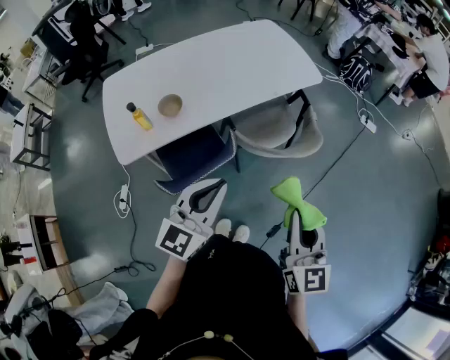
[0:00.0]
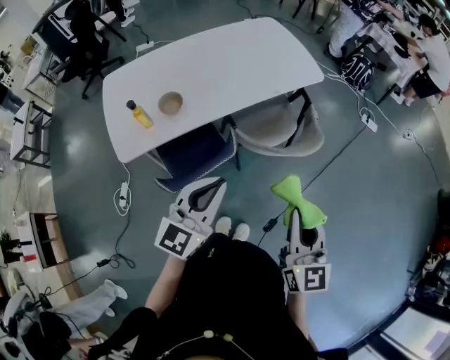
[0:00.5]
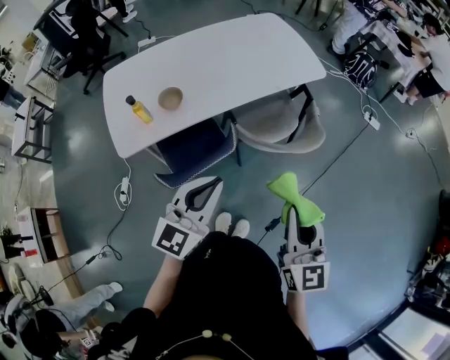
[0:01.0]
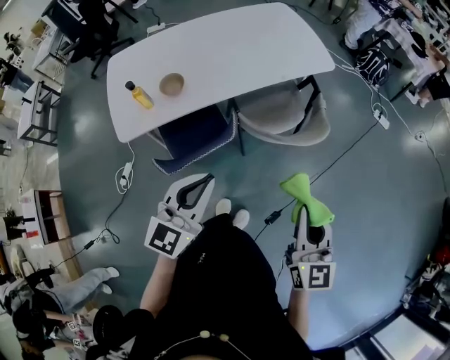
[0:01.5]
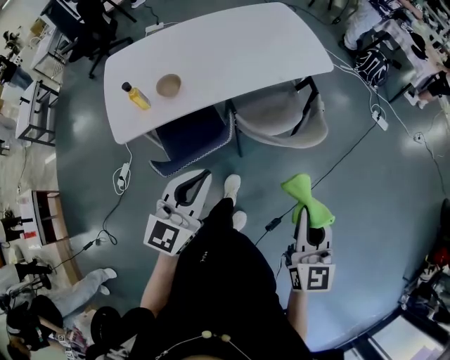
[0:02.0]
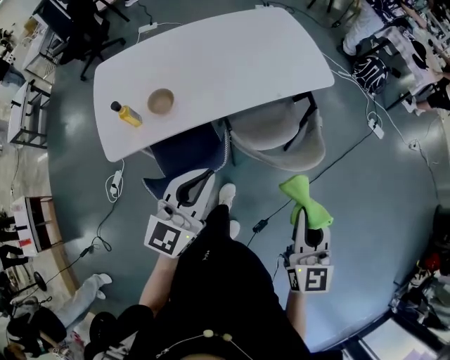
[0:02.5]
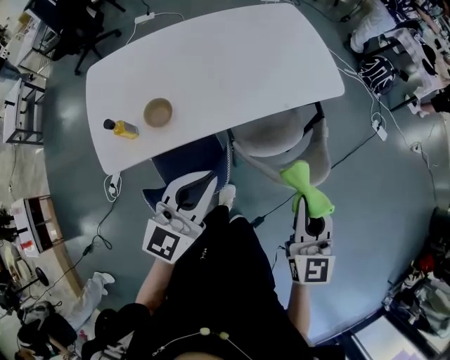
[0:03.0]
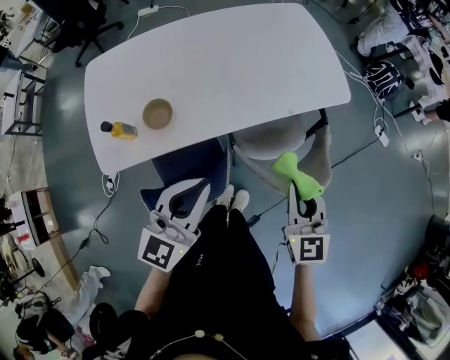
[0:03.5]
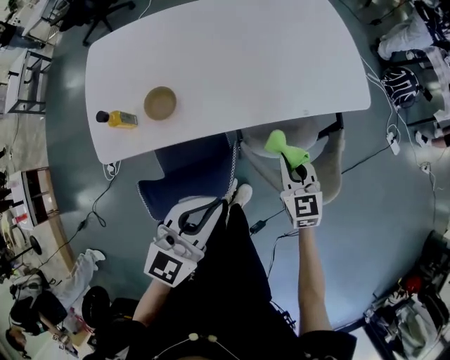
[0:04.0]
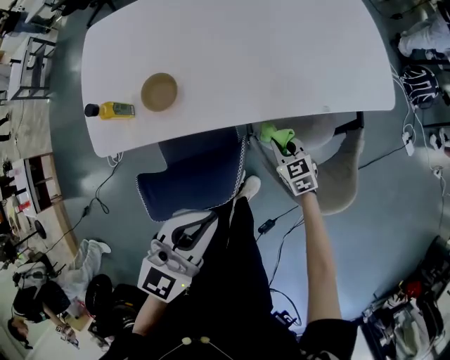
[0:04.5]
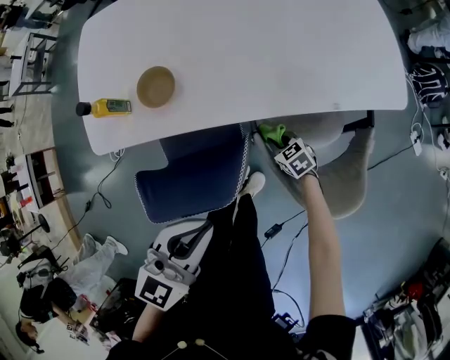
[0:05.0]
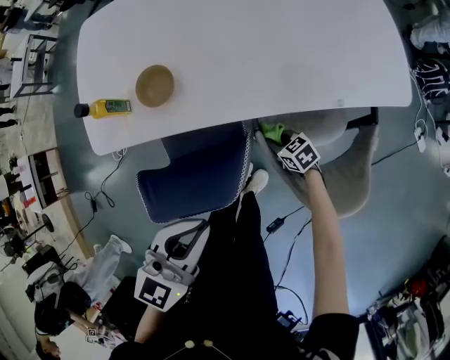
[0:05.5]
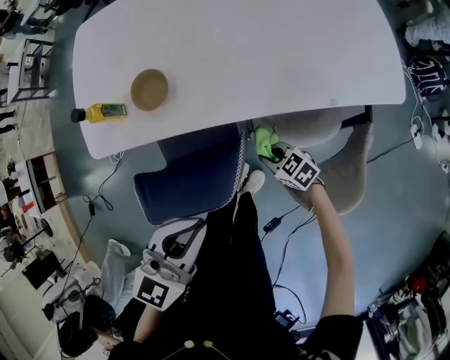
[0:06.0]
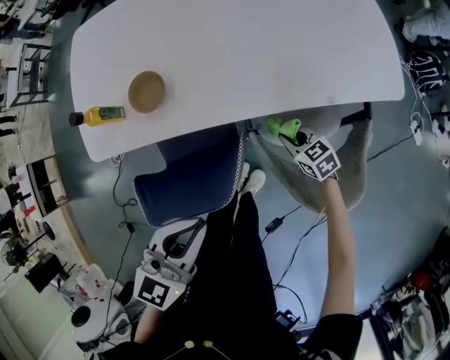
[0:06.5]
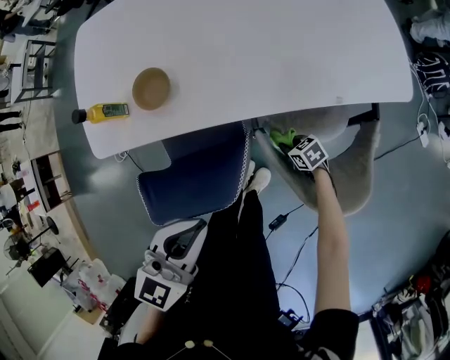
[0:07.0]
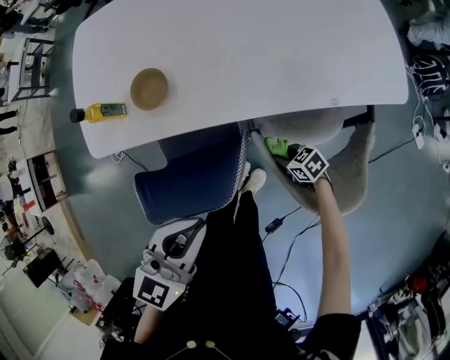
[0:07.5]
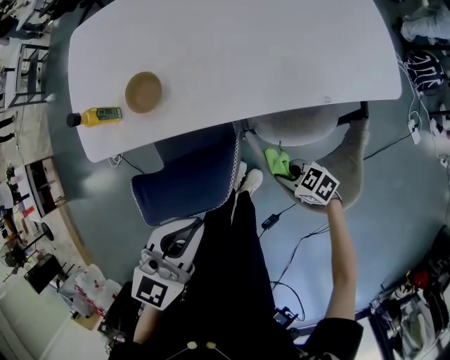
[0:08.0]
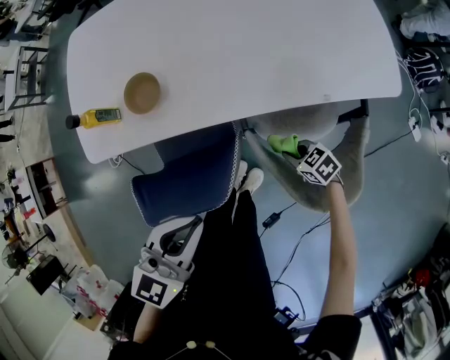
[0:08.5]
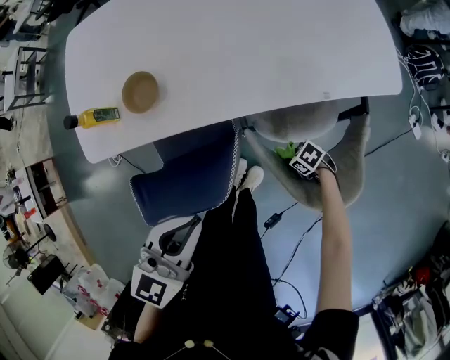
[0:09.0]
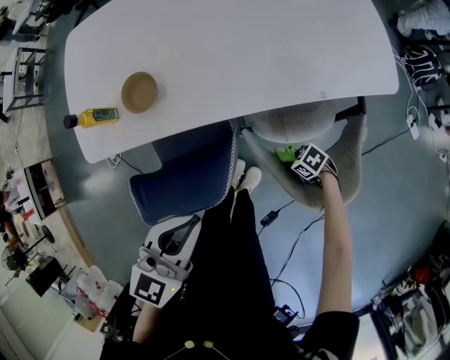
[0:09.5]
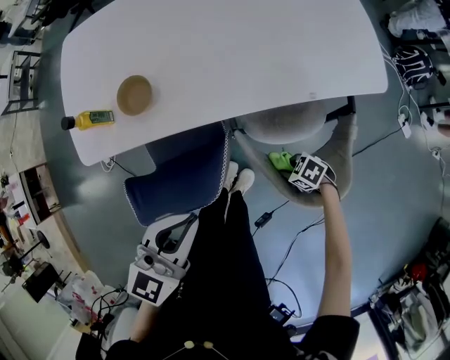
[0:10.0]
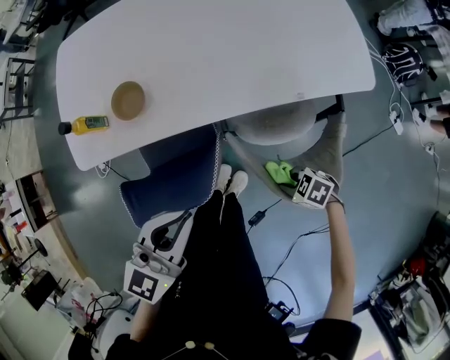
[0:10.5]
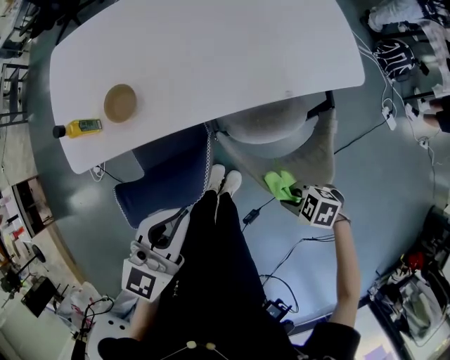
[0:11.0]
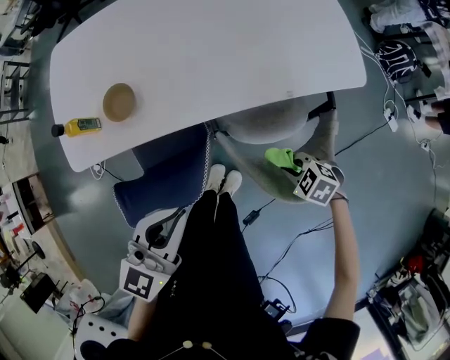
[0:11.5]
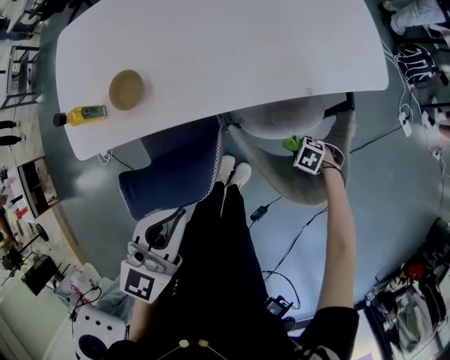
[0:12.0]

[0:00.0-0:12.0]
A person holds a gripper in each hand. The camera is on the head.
0:00.0 to 0:02.0: The right gripper heads to the right, covering approximately 5 cm.
0:02.0 to 0:04.0: The left gripper moves forward, roughly 15 cm, while the right gripper shifts about 40 cm forward and downward, and rotates some 30 degrees.
0:04.0 to 0:06.0: The right gripper travels downward by some 20 cm, and turns by approximately 50 degrees. Meanwhile the left gripper travels downward by approximately 5 cm.
0:06.0 to 0:08.0: The right gripper goes downward and returns, about 10 cm each way.
0:10.0 to 0:12.0: The right gripper travels upward and back again, approximately 15 cm each way, and rotates about 20 degrees.

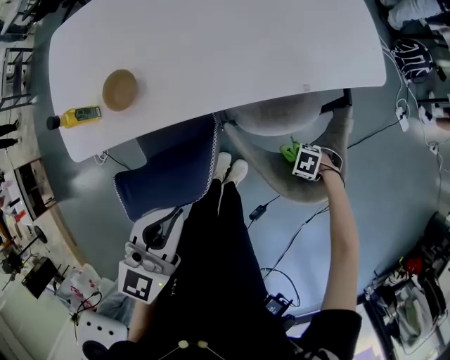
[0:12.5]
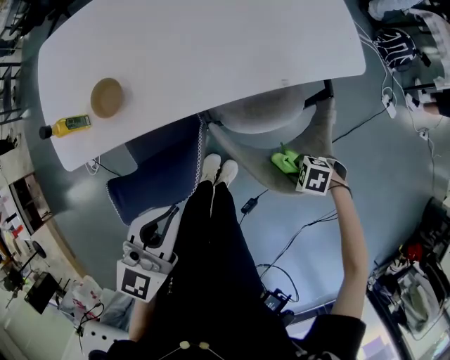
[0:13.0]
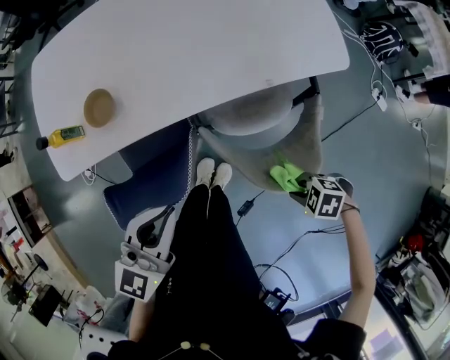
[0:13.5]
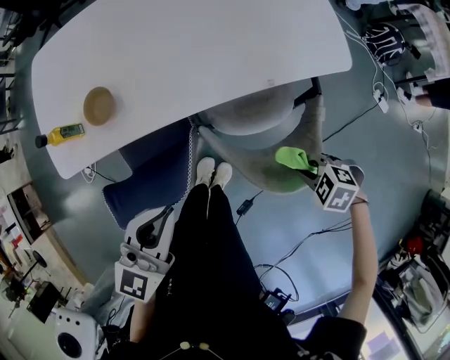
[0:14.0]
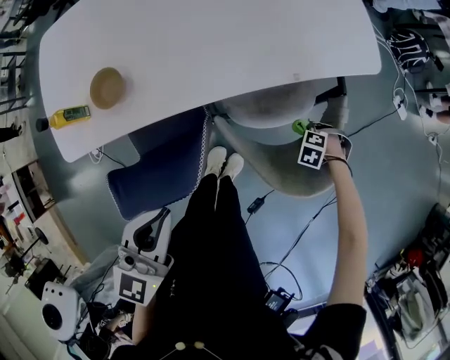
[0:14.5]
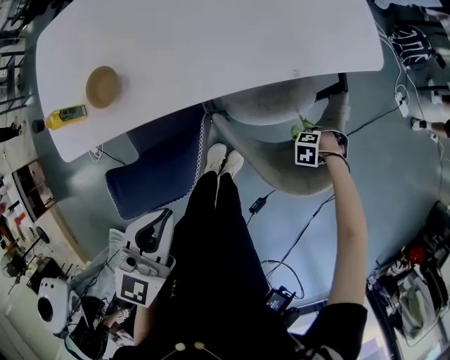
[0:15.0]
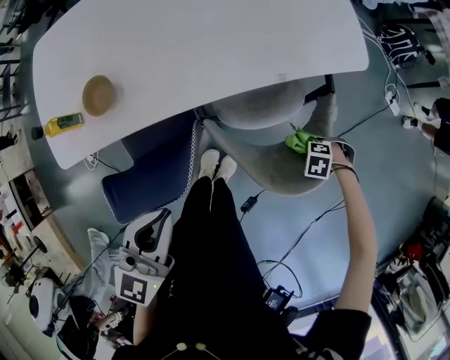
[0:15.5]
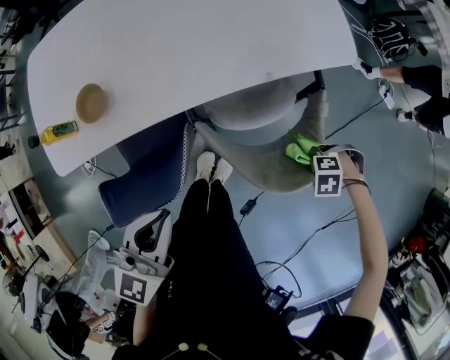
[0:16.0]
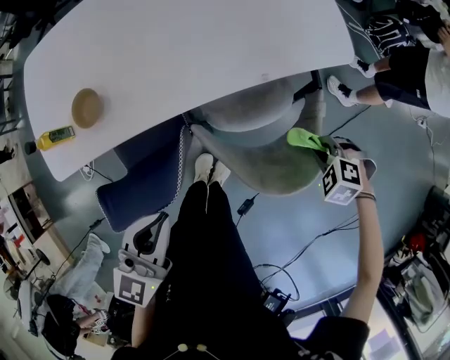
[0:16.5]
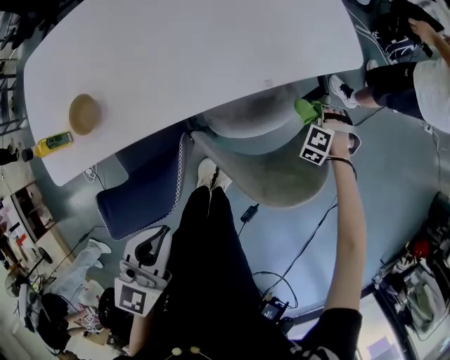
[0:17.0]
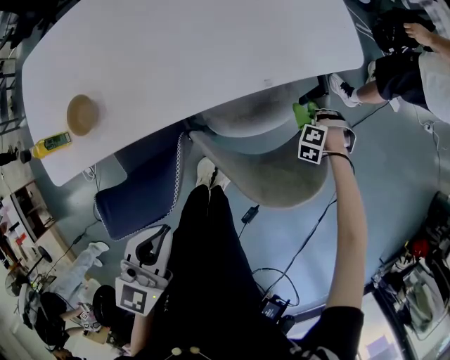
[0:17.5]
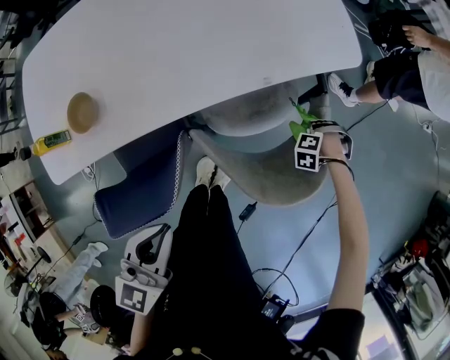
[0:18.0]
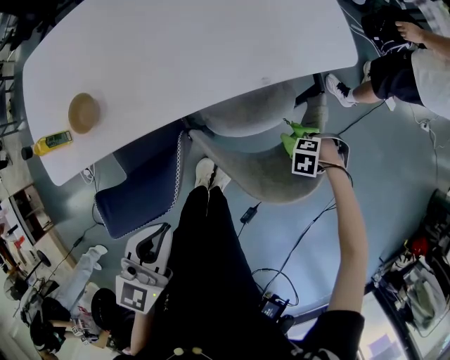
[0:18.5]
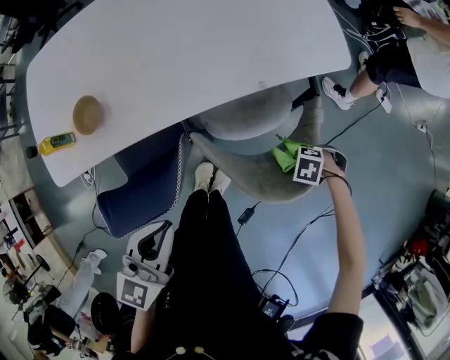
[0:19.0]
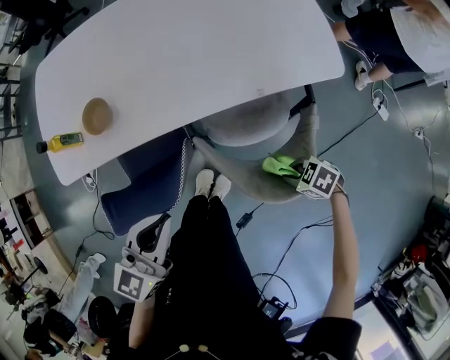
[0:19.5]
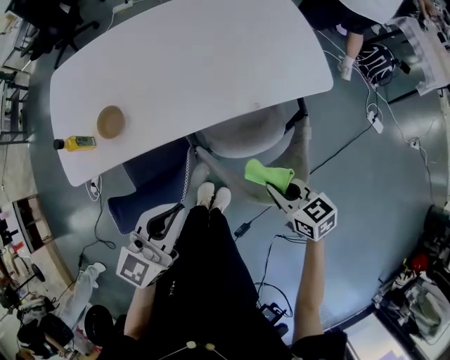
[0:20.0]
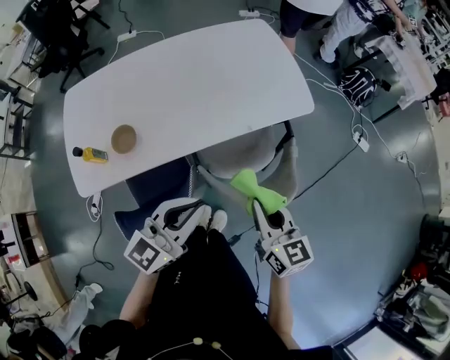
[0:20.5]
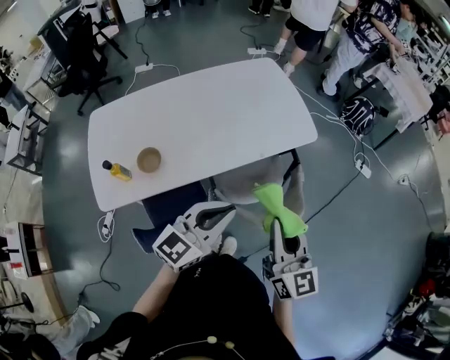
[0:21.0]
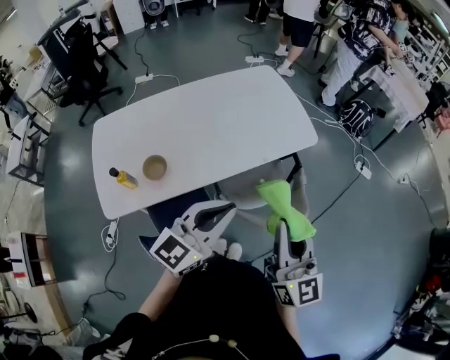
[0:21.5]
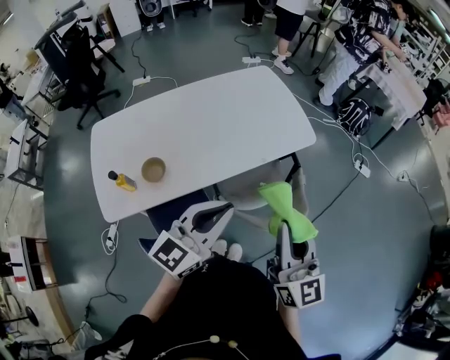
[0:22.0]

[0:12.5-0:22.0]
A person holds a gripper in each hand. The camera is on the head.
0:12.5 to 0:14.5: The right gripper reaches approximately 20 cm upward, then returns, and swivels about 30 degrees.
0:14.5 to 0:16.5: The right gripper is displaced upward by roughly 20 cm.
0:16.5 to 0:18.0: The right gripper goes approximately 15 cm downward, and rotates roughly 30 degrees.
0:18.0 to 0:20.0: The right gripper heads upward, covering about 25 cm, and points its fingers some 40 degrees further upward; the left gripper is displaced upward by about 5 cm.
0:20.0 to 0:22.0: The left gripper shifts roughly 15 cm upward, while the right gripper travels upward by approximately 30 cm, and tilts its fingers approximately 50 degrees upward.

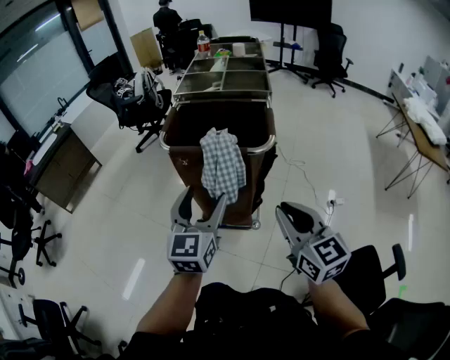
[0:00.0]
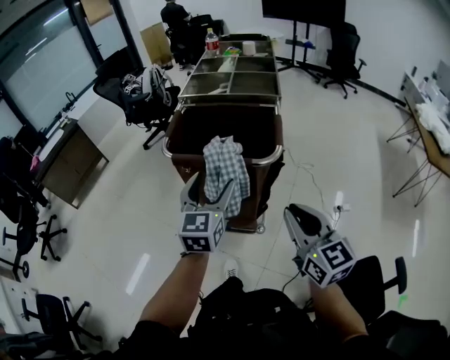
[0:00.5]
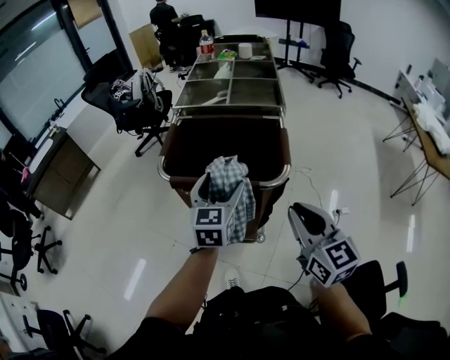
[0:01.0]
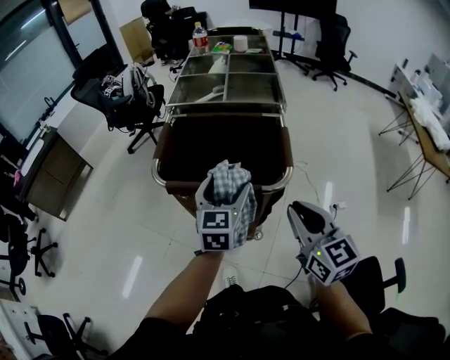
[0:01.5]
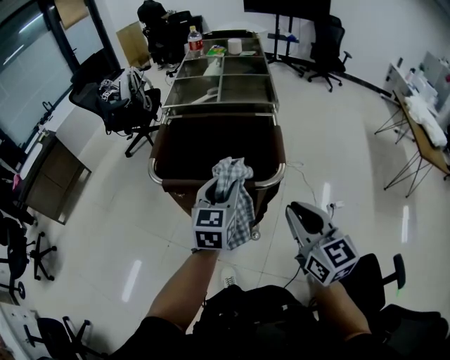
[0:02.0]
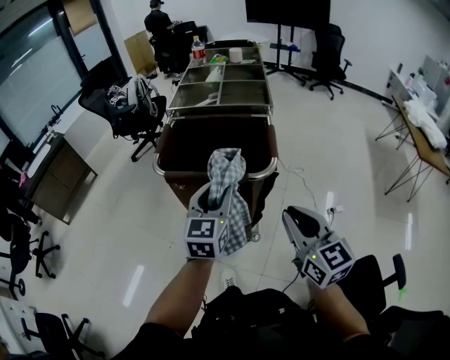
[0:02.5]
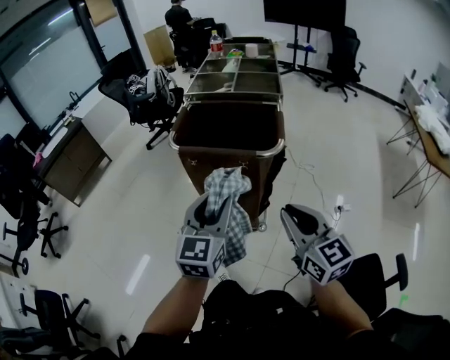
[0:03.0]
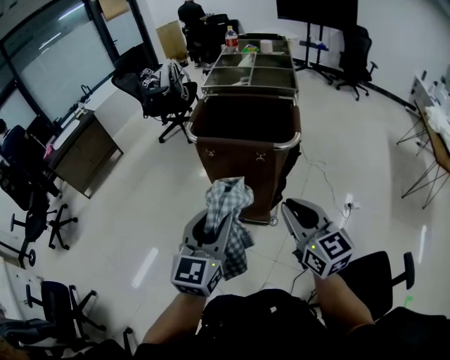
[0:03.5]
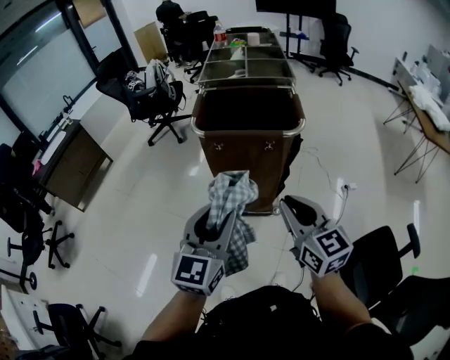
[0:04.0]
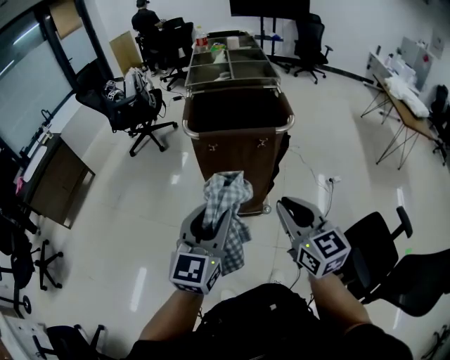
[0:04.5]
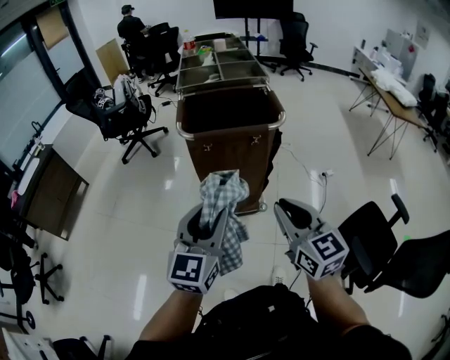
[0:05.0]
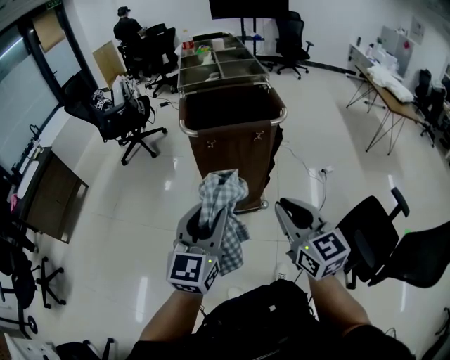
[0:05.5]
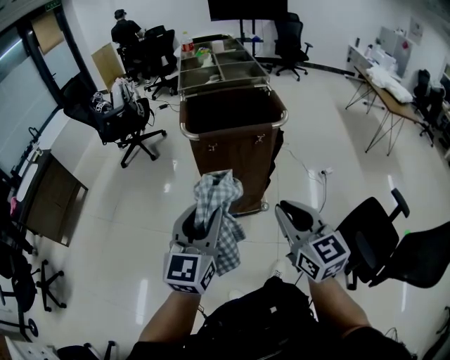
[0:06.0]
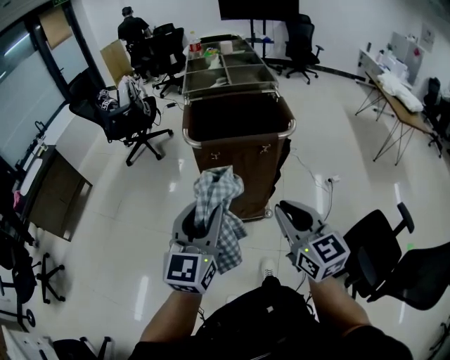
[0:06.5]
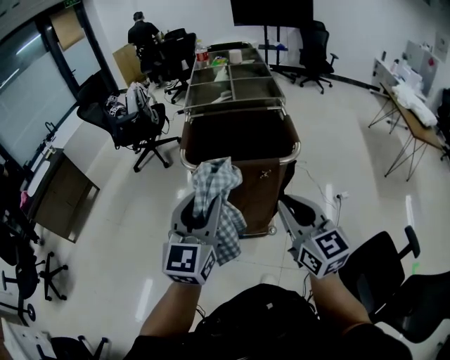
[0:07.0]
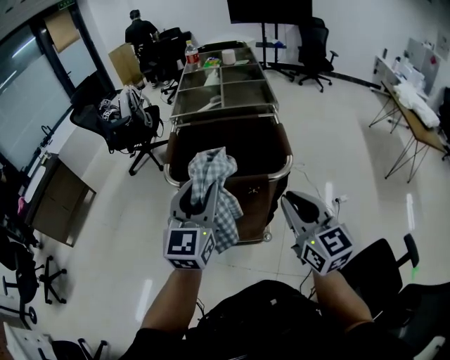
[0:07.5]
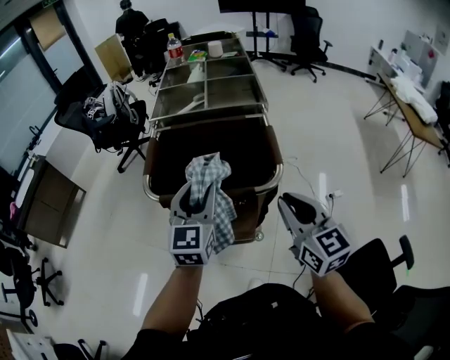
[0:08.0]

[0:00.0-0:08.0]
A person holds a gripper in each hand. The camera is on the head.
0:00.0 to 0:02.0: Both grippers move forward, approximately 15 cm. The left gripper closes its fingers.
0:02.0 to 0:04.0: The right gripper heads backward and to the left, covering some 20 cm. The left gripper is displaced backward and to the left by some 30 cm.
0:04.0 to 0:06.0: The left gripper moves to the left, about 10 cm. The right gripper travels backward and to the left by roughly 10 cm.
0:06.0 to 0:08.0: The two grippers go some 30 cm forward and to the right.
